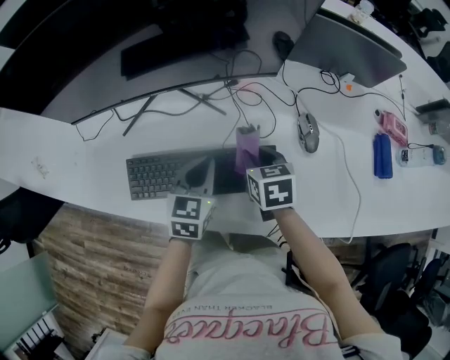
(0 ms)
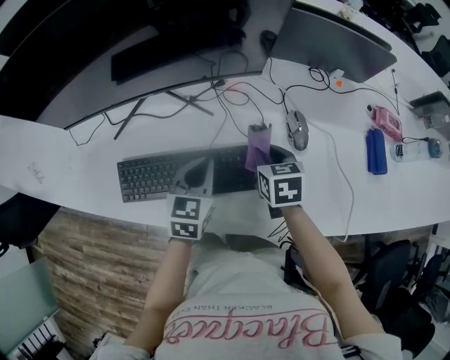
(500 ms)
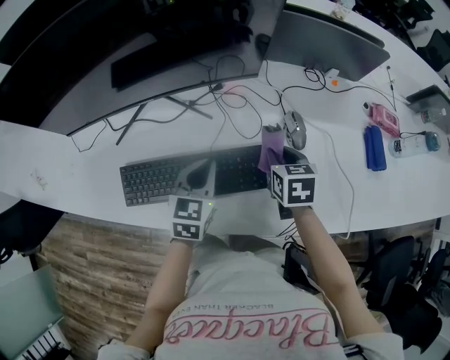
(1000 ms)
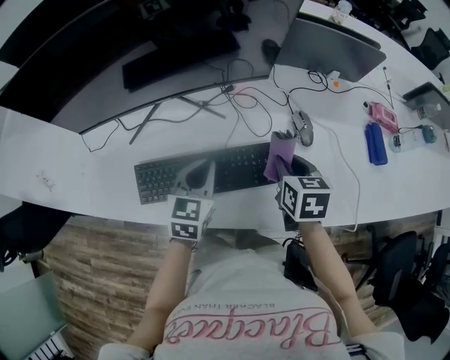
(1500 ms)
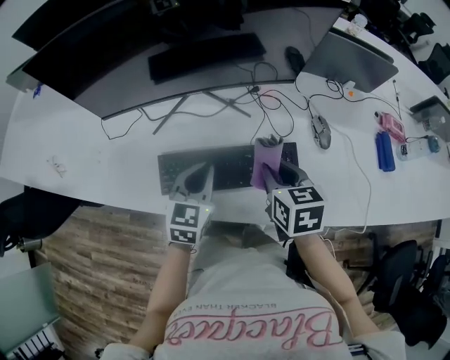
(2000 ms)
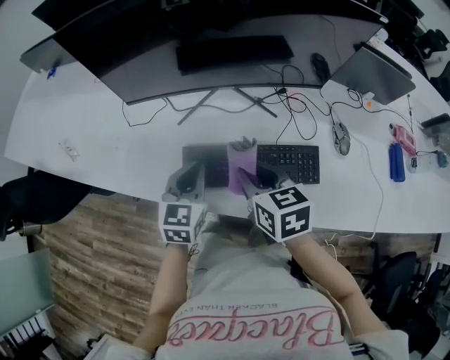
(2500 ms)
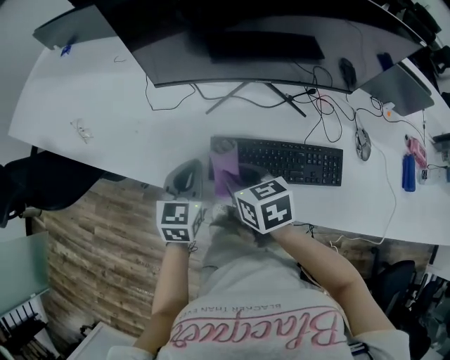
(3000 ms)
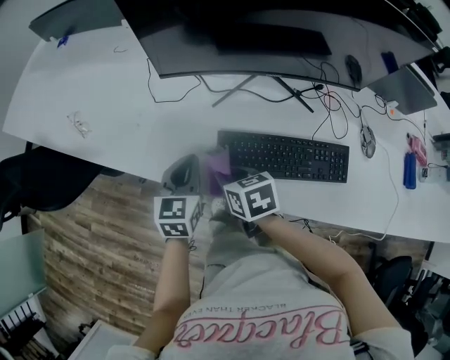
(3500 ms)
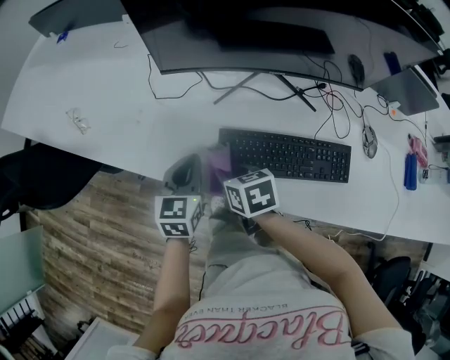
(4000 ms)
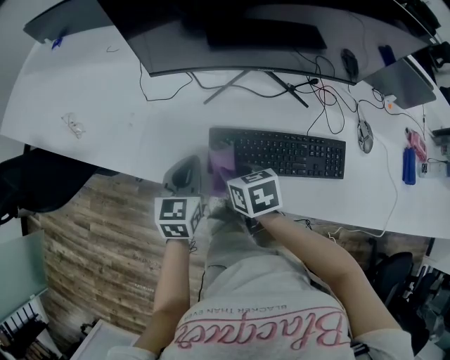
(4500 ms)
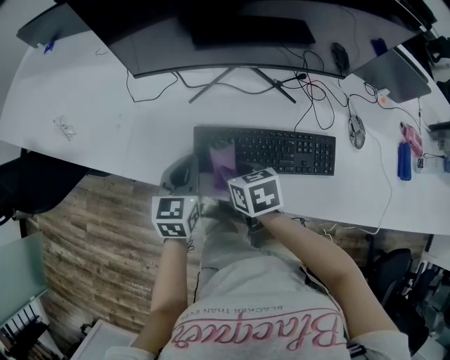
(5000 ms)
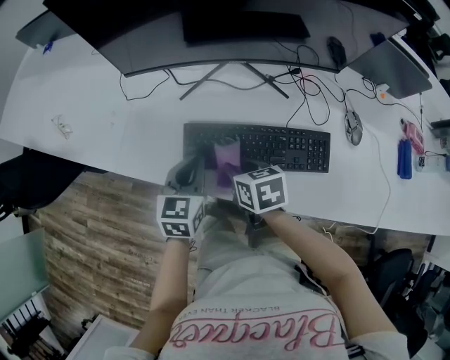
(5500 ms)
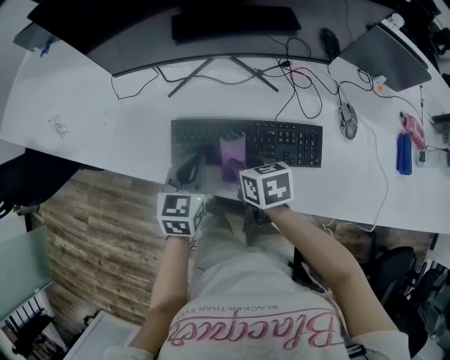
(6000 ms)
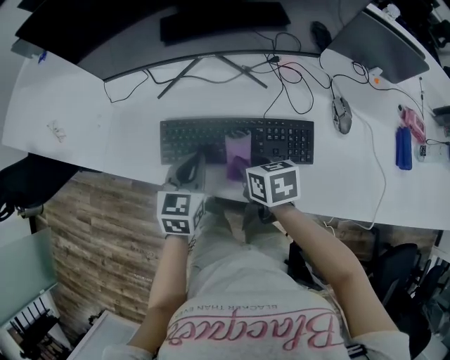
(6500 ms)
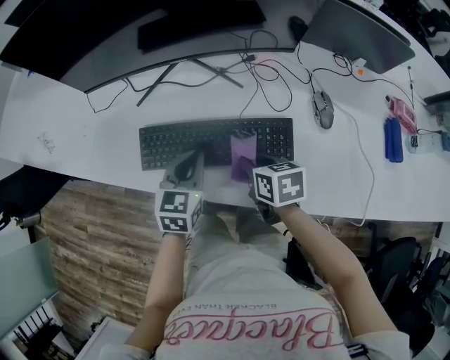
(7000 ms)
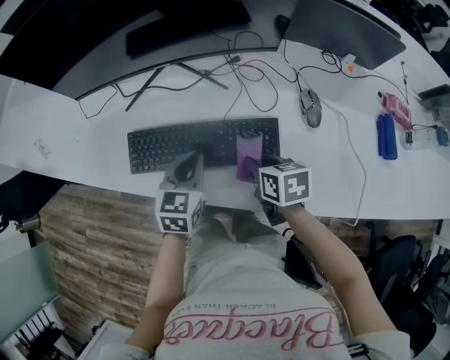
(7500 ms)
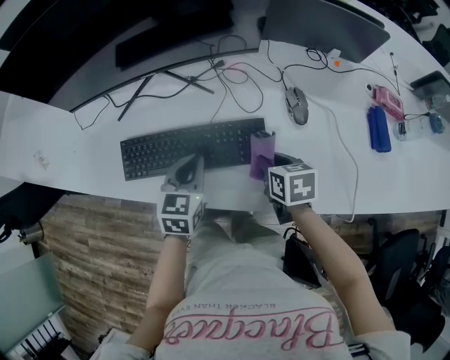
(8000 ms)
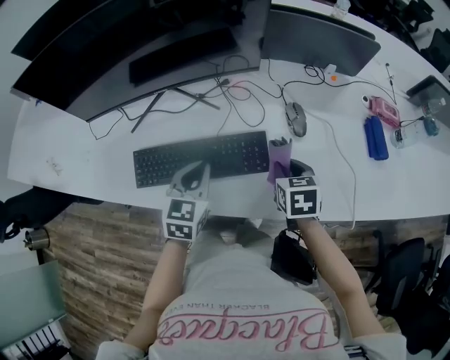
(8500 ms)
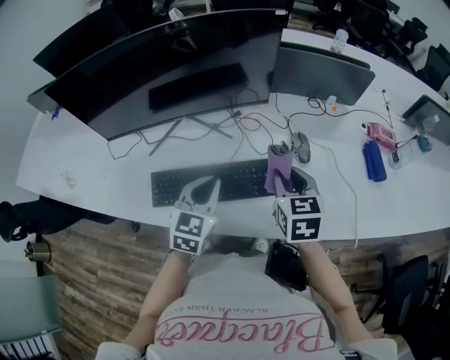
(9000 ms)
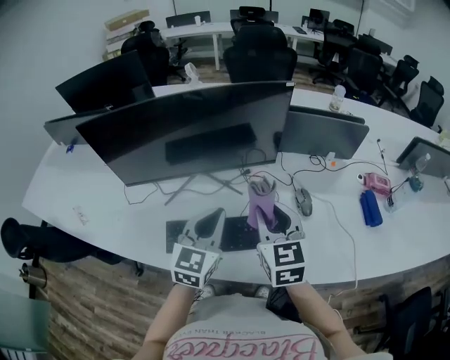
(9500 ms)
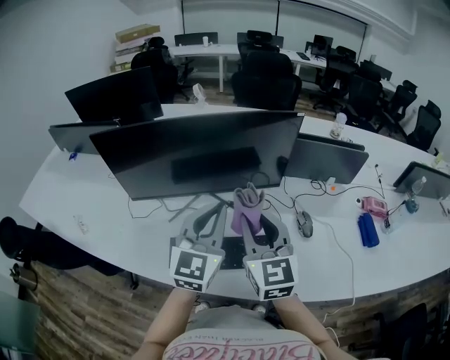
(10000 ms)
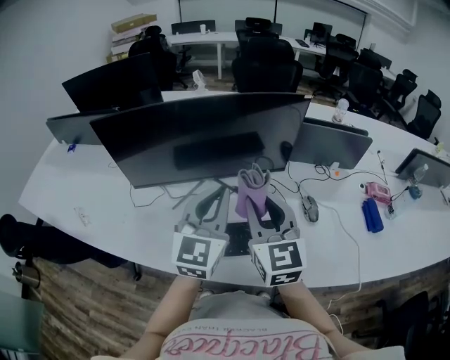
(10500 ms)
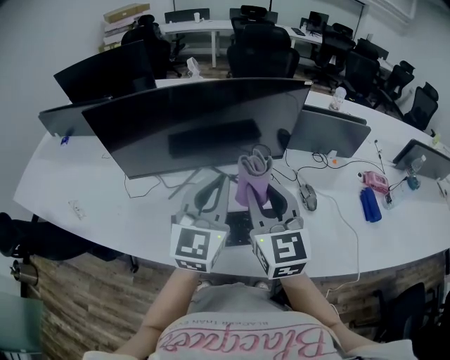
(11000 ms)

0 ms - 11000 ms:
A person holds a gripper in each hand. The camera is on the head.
0 ms - 2000 ms: The left gripper is displaced to the left, backward and upward by roughly 10 cm. The right gripper moves upward and backward, approximately 10 cm, and moves about 10 cm to the right and comes back.
2000 ms - 3500 ms: The right gripper moves roughly 35 cm, and turns by approximately 30 degrees. Meanwhile the left gripper shifts by approximately 25 cm, and swivels approximately 20 degrees.
3500 ms - 5500 ms: The grippers both shift to the right by some 10 cm.
5500 ms - 7500 ms: The two grippers go some 20 cm to the right.
7500 ms - 9000 ms: The right gripper is displaced upward and to the right by roughly 15 cm, and swivels approximately 40 degrees; the left gripper goes about 10 cm upward.
9000 ms - 11000 ms: The right gripper moves upward and to the left, some 25 cm, and changes its angle by roughly 30 degrees; the left gripper moves upward, about 20 cm, and rotates roughly 30 degrees.

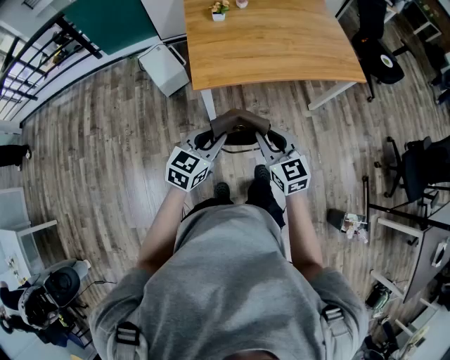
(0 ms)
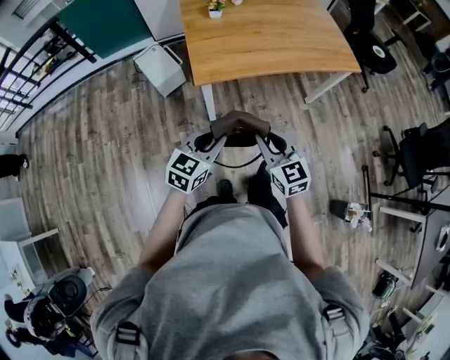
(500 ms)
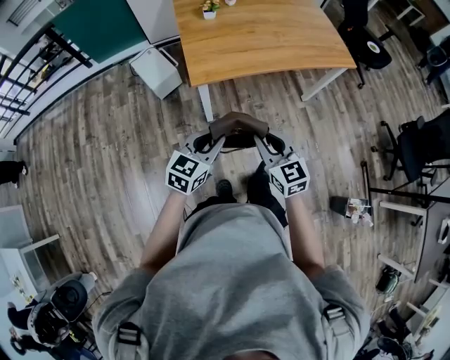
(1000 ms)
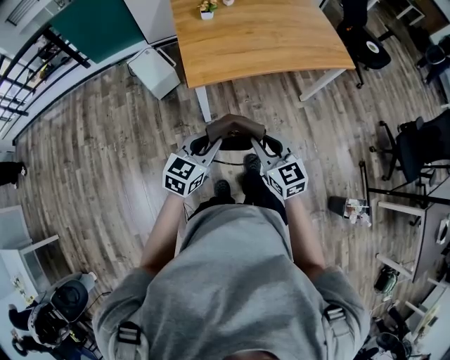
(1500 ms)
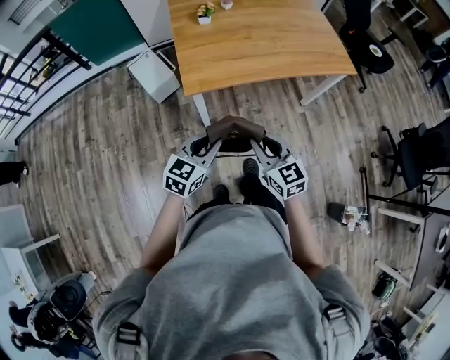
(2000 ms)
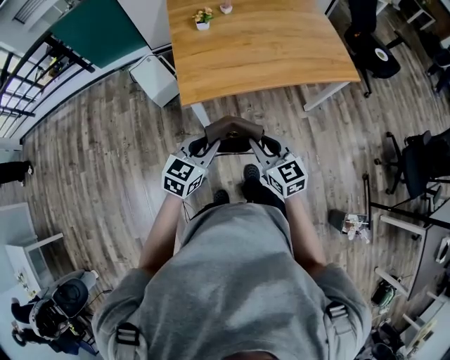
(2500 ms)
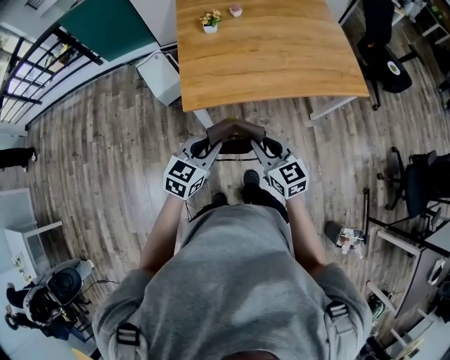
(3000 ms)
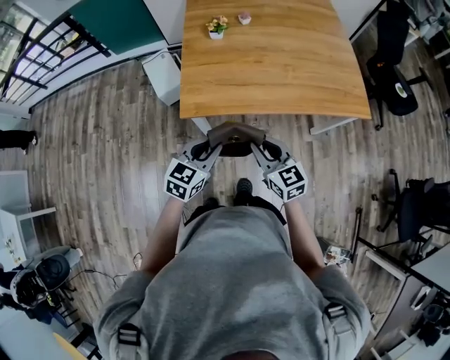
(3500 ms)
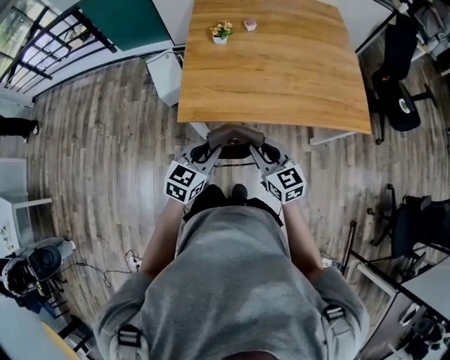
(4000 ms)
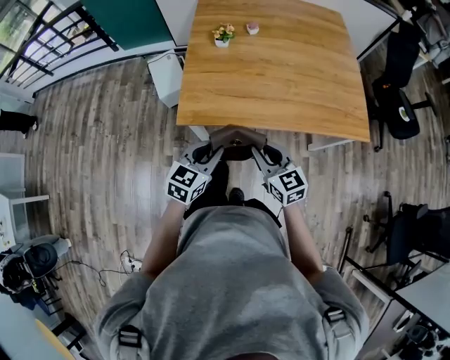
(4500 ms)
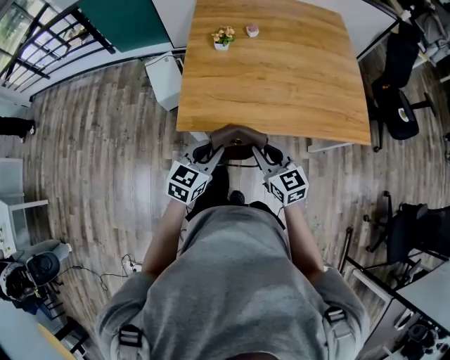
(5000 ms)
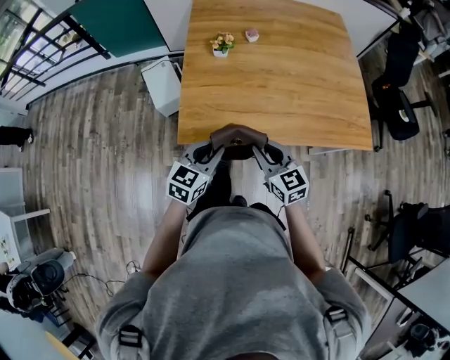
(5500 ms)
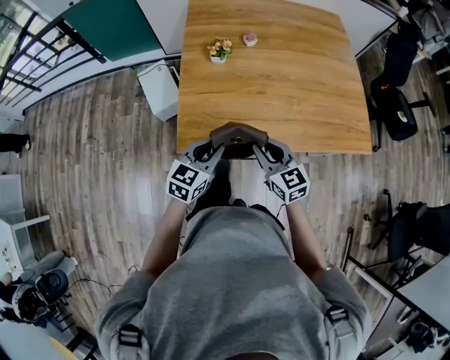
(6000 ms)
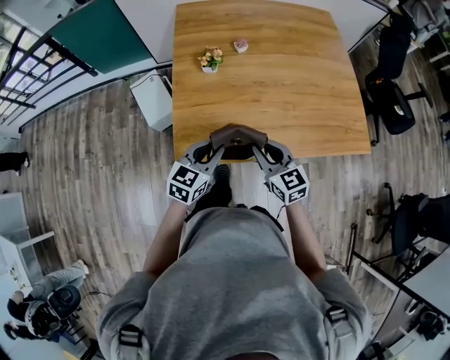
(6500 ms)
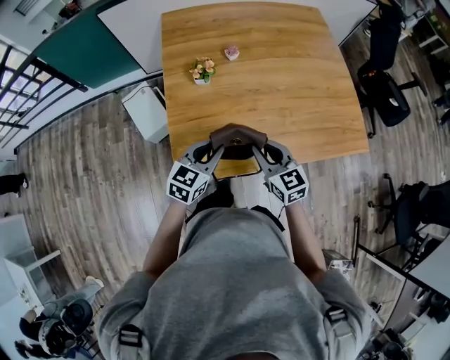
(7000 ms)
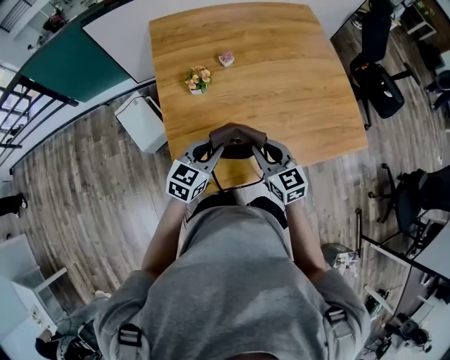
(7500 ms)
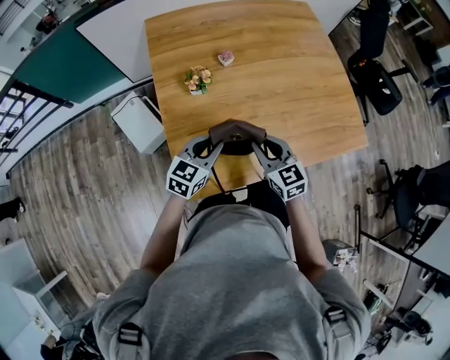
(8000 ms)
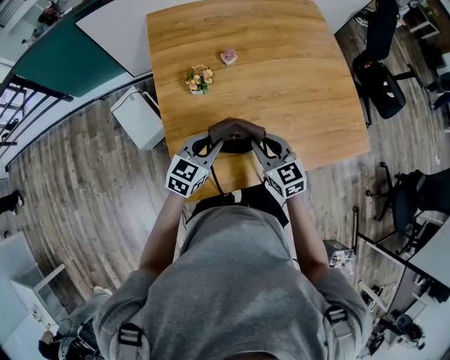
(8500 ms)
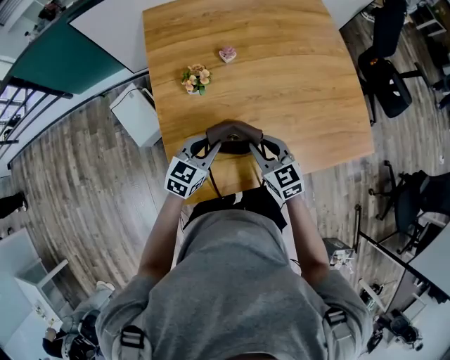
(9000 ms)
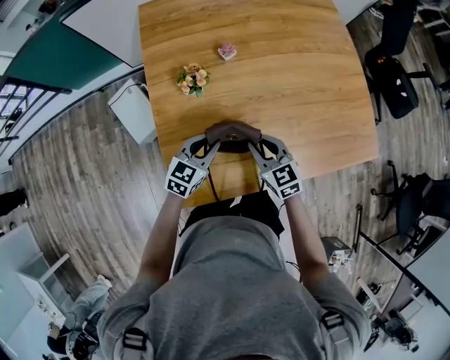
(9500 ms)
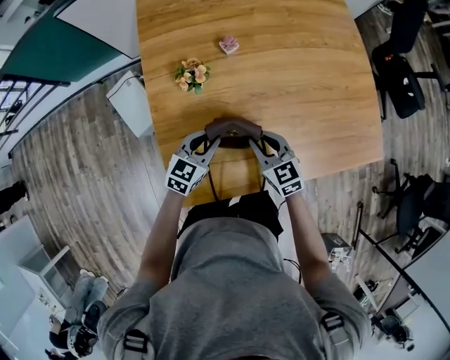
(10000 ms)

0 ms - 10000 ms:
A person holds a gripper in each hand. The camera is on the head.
0 ms - 2000 ms: The grippers stay close to where they were, moving slightly.
2000 ms - 4000 ms: Both grippers travel together forward and to the right, about 20 cm.
4000 ms - 6000 ms: Both grippers move forward, approximately 15 cm.
6000 ms - 8000 ms: Both grippers travel together forward, about 15 cm.
8000 ms - 10000 ms: Both grippers move downward and forward, some 15 cm.

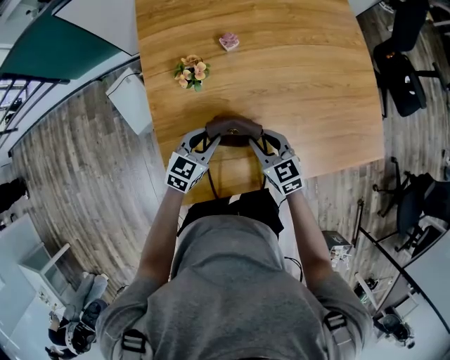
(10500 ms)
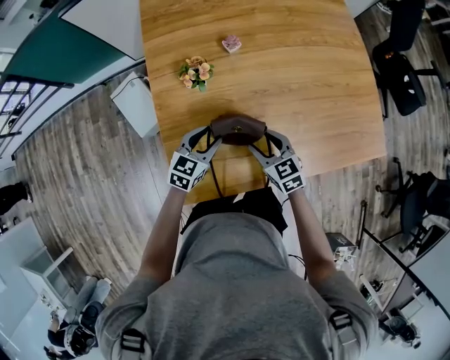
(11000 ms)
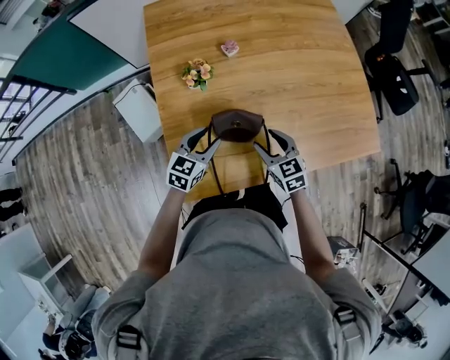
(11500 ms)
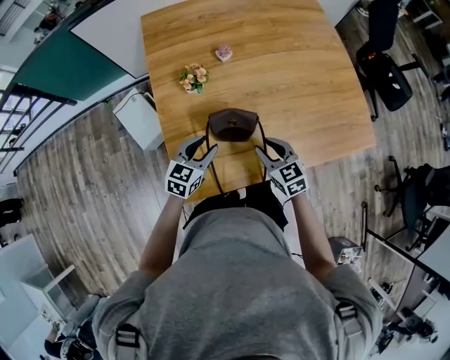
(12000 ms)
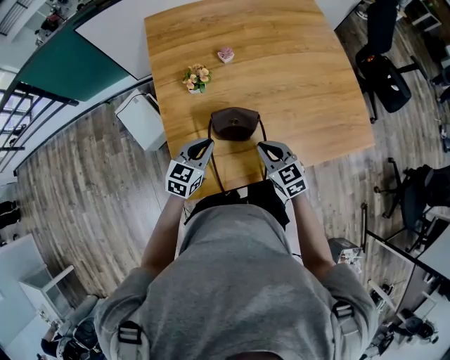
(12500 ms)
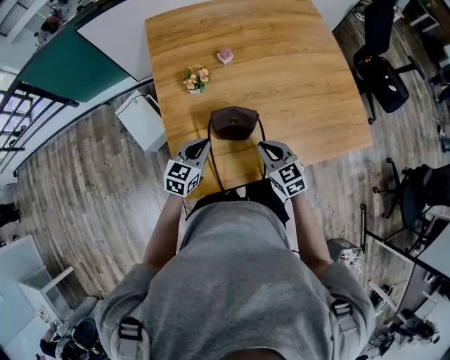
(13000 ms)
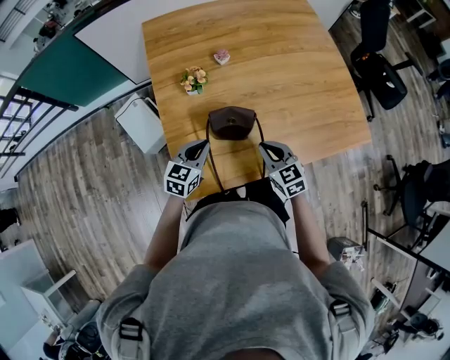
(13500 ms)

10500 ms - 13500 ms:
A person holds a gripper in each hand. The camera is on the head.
10500 ms - 12000 ms: The right gripper is displaced backward by some 5 cm, and opens and closes again; the left gripper moves backward and upward, about 10 cm, and opens up.
12000 ms - 13500 ms: The left gripper closes up. The right gripper closes its fingers.

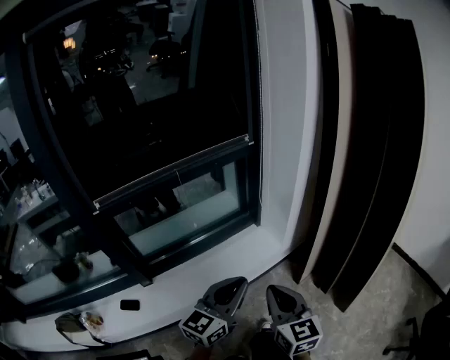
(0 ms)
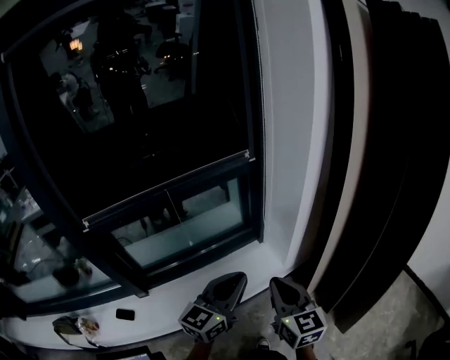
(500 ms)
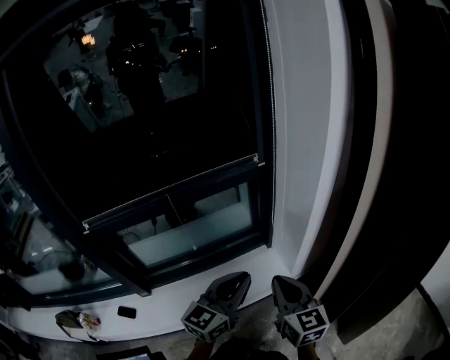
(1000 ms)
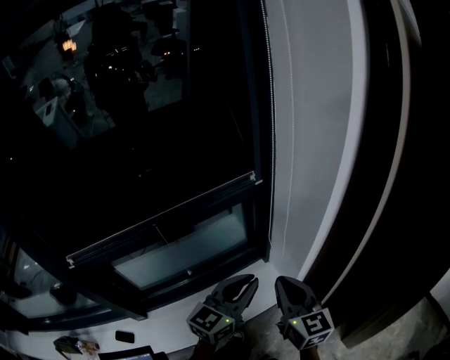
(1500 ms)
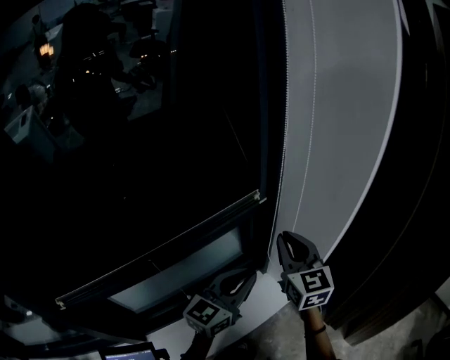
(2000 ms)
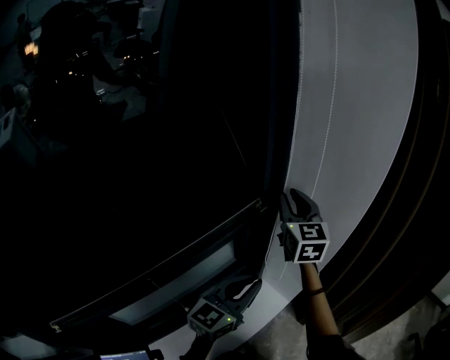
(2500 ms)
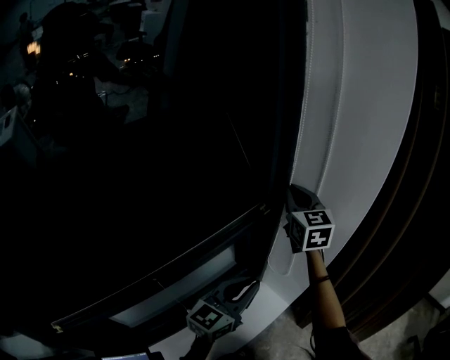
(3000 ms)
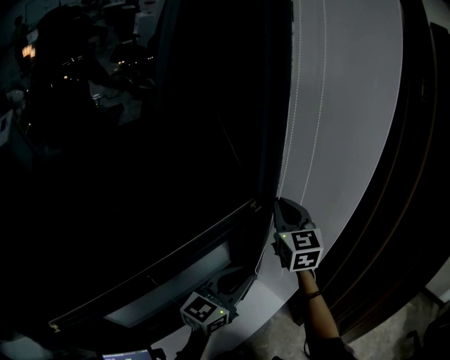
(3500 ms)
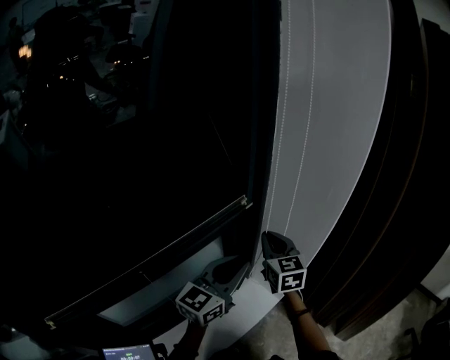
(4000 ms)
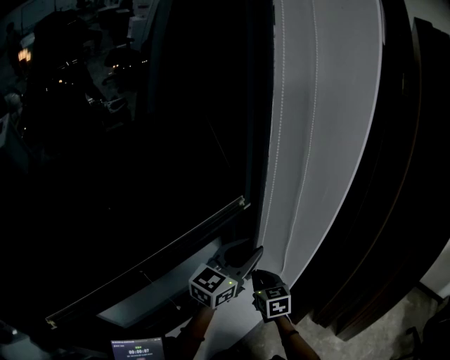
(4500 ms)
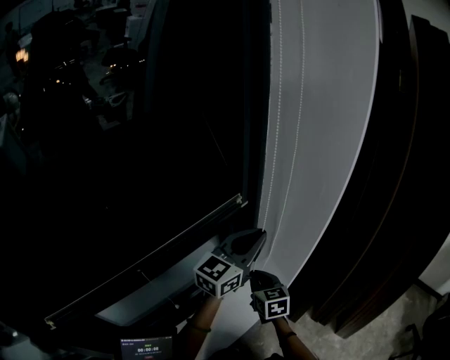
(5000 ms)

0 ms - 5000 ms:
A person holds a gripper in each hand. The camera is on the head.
0 ms - 2500 ms: The pair of grippers is taken approximately 60 cm. The right gripper swivels approximately 30 degrees.
2500 ms - 5000 ms: The right gripper goes about 30 cm downward and backward, and swivels some 30 degrees; the left gripper heads upward and forward, covering some 10 cm.
